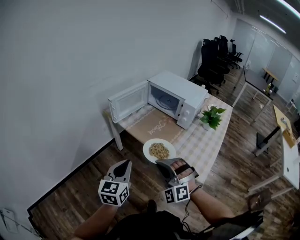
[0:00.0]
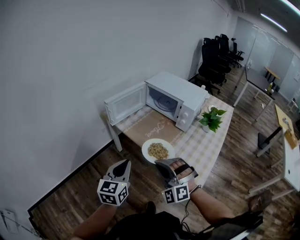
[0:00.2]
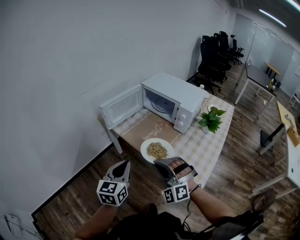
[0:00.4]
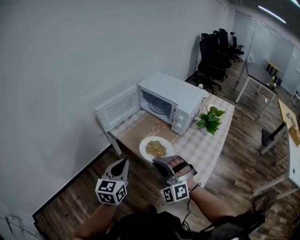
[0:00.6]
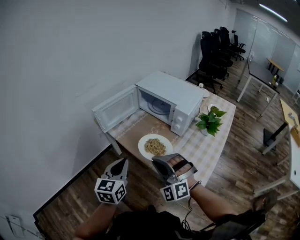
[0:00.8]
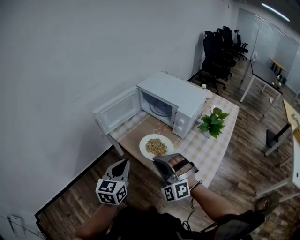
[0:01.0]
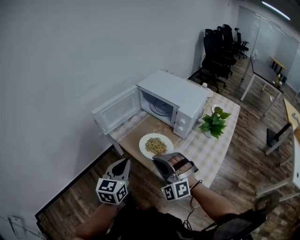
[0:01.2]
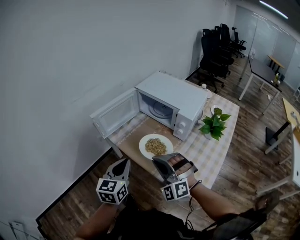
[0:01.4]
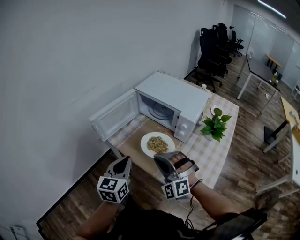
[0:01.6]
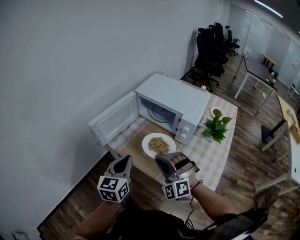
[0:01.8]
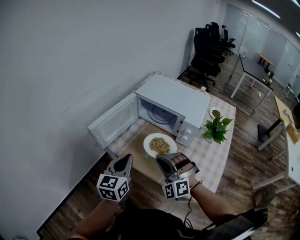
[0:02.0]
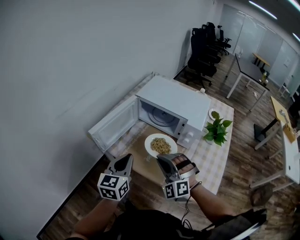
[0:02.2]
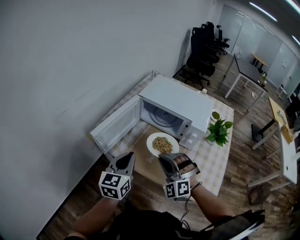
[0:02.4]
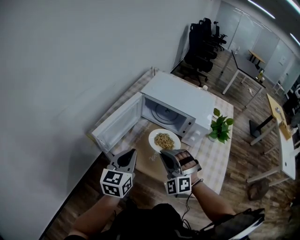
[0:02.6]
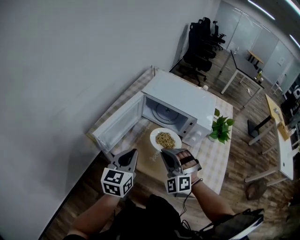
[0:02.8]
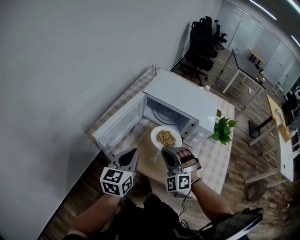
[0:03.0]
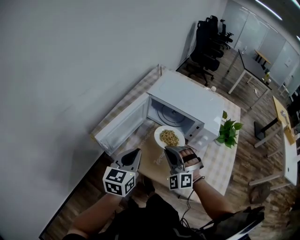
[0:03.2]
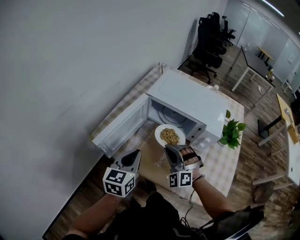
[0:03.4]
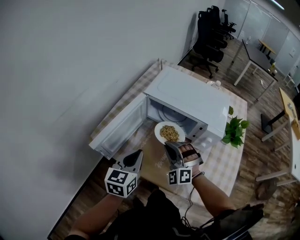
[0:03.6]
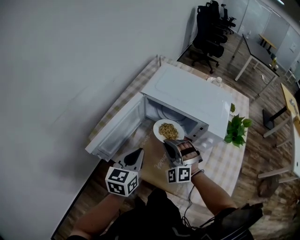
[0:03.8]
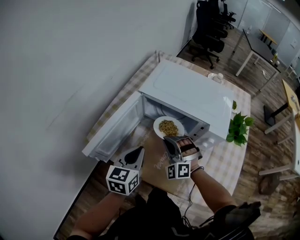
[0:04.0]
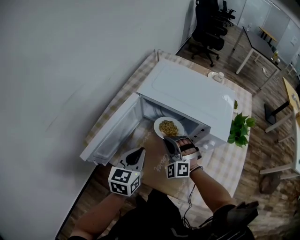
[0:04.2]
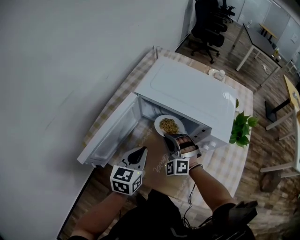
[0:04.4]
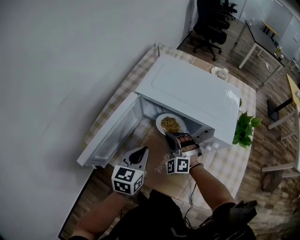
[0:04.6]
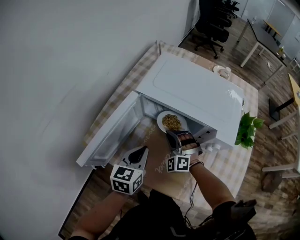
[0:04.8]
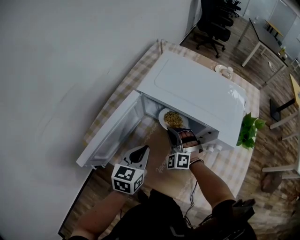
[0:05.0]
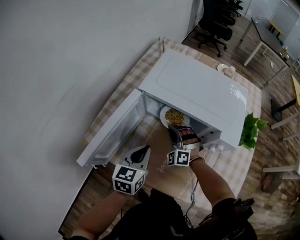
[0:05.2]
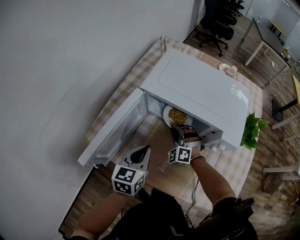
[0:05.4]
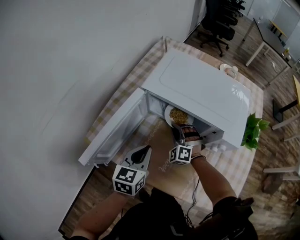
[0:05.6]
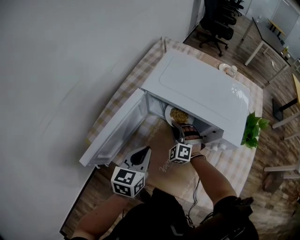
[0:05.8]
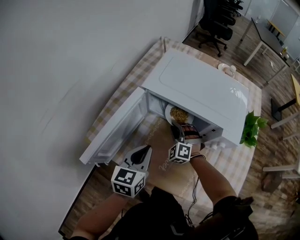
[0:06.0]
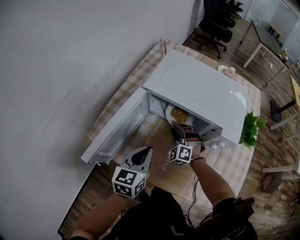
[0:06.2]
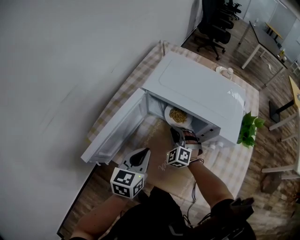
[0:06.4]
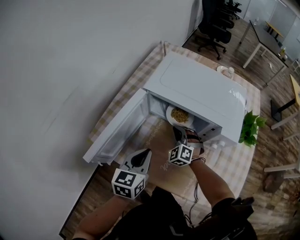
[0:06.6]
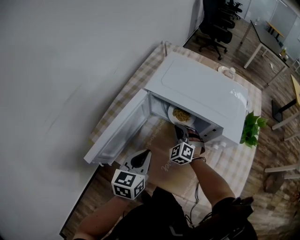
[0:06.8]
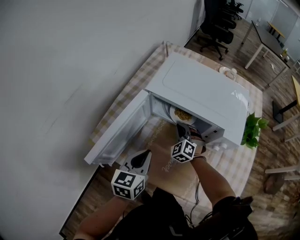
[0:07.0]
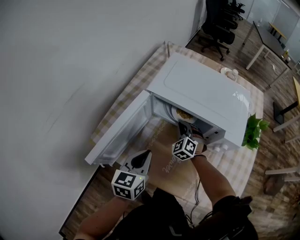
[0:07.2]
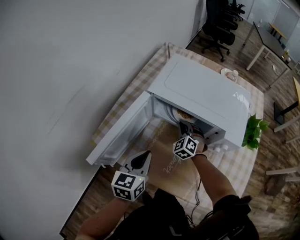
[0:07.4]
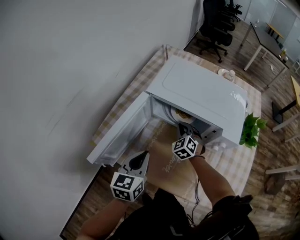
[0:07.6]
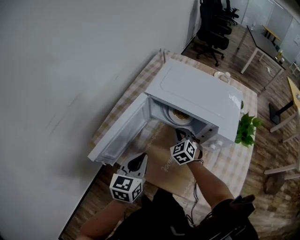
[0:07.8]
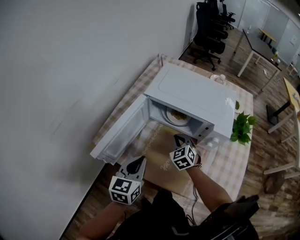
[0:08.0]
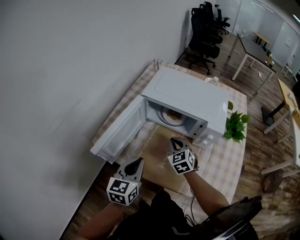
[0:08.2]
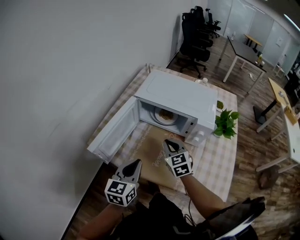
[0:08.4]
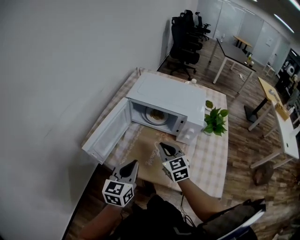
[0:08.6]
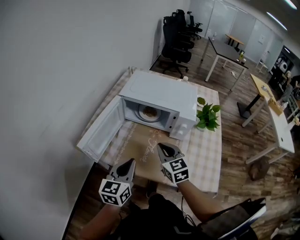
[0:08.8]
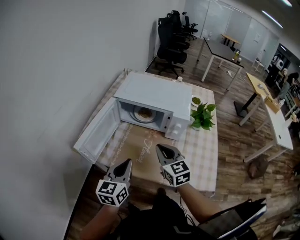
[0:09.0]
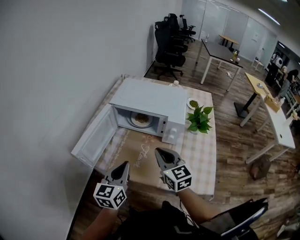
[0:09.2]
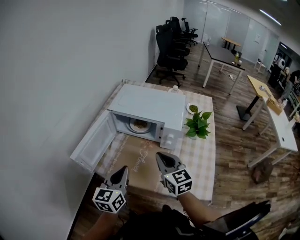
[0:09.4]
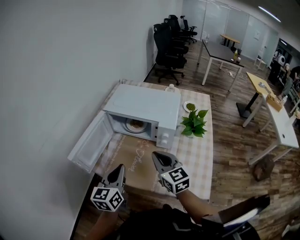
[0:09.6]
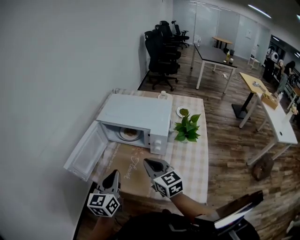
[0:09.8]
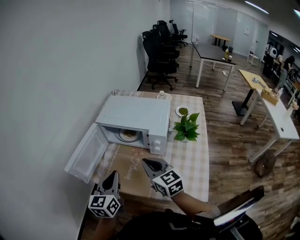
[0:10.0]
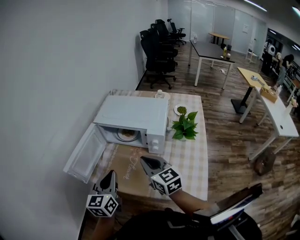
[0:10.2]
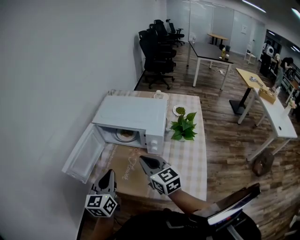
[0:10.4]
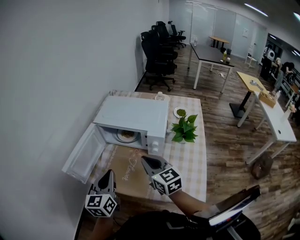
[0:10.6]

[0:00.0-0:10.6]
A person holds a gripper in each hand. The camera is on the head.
0:00.0 to 0:01.6: Both grippers move forward and to the right, roughly 20 cm.
0:01.6 to 0:03.0: The two grippers go about 15 cm forward and to the left.
0:03.0 to 0:04.6: The right gripper goes roughly 25 cm forward and downward; the left gripper goes some 15 cm forward, downward and to the right.
0:04.6 to 0:06.0: The right gripper goes about 5 cm downward.
0:06.0 to 0:07.6: The right gripper rotates approximately 30 degrees.
0:07.6 to 0:09.0: The right gripper is displaced backward and upward by approximately 30 cm, and turns by approximately 40 degrees; the left gripper heads backward and upward, covering roughly 15 cm.
0:09.0 to 0:10.6: The left gripper is displaced upward by roughly 5 cm, while the right gripper moves to the right and upward, about 10 cm.

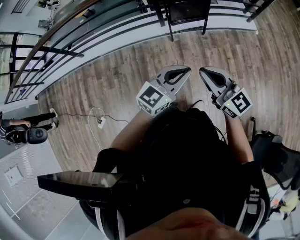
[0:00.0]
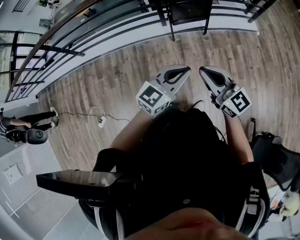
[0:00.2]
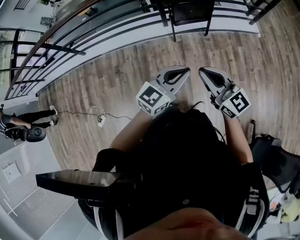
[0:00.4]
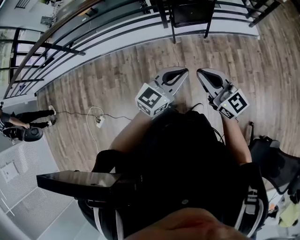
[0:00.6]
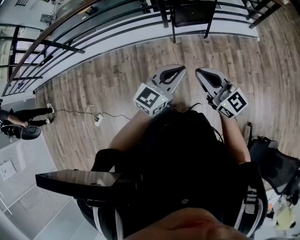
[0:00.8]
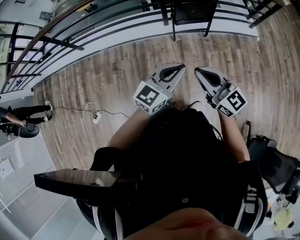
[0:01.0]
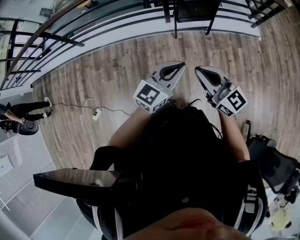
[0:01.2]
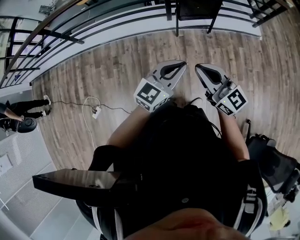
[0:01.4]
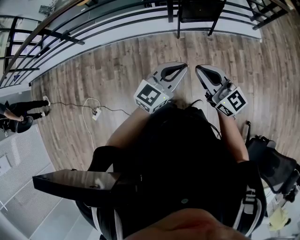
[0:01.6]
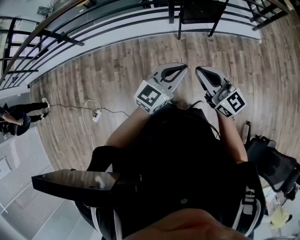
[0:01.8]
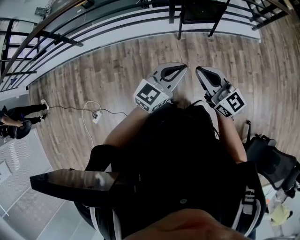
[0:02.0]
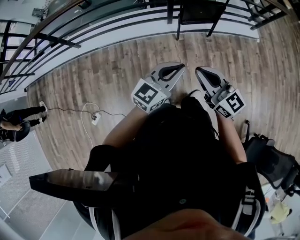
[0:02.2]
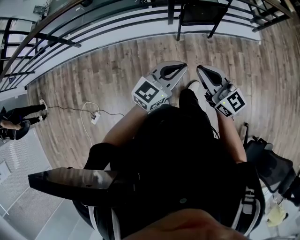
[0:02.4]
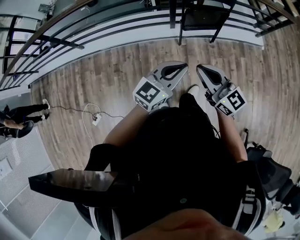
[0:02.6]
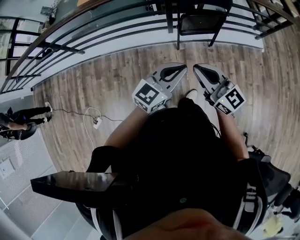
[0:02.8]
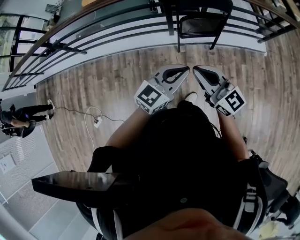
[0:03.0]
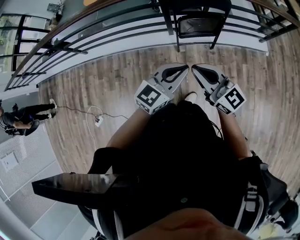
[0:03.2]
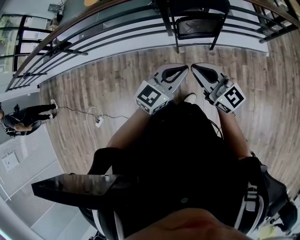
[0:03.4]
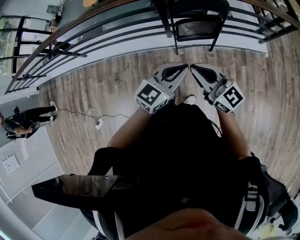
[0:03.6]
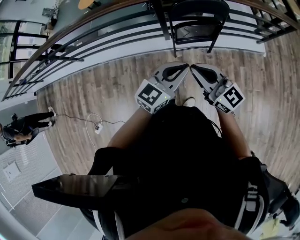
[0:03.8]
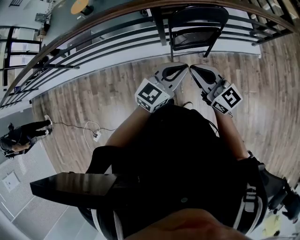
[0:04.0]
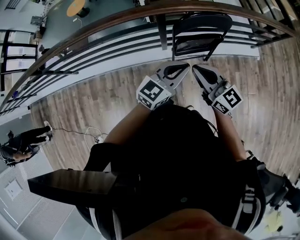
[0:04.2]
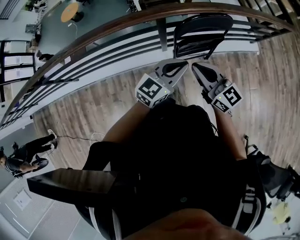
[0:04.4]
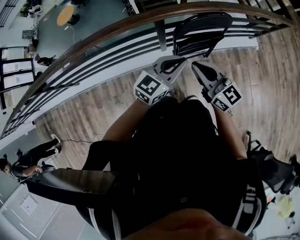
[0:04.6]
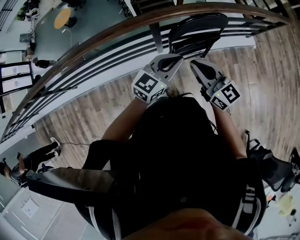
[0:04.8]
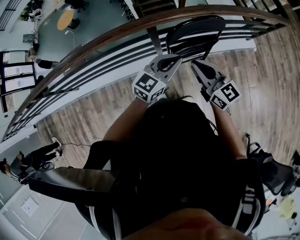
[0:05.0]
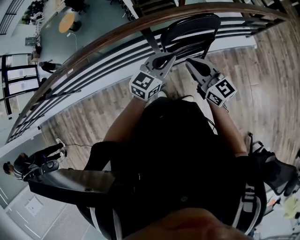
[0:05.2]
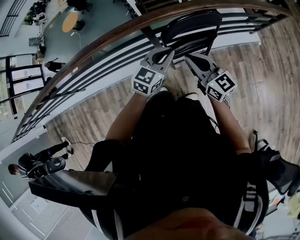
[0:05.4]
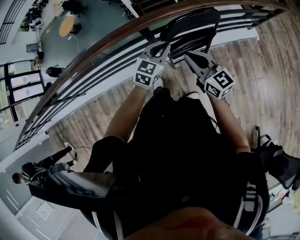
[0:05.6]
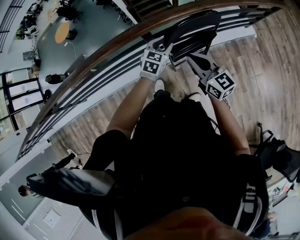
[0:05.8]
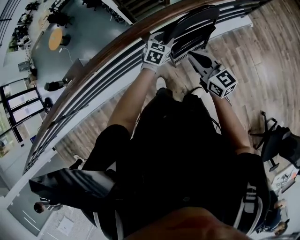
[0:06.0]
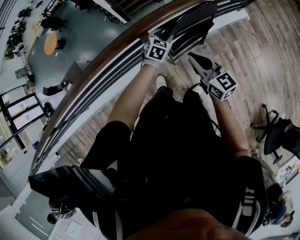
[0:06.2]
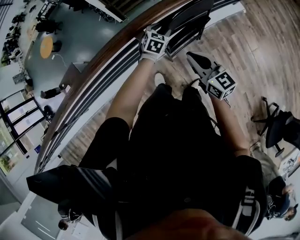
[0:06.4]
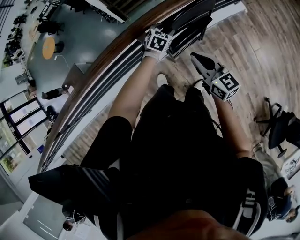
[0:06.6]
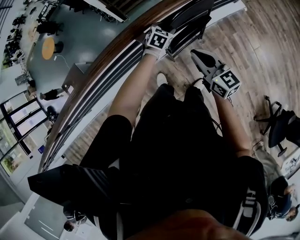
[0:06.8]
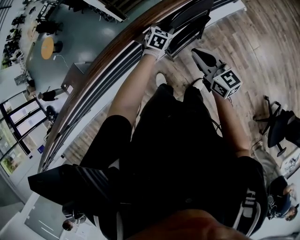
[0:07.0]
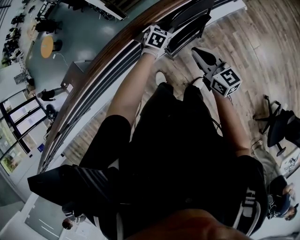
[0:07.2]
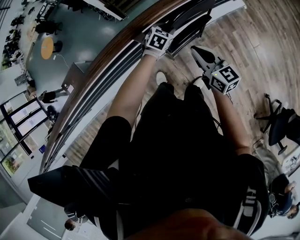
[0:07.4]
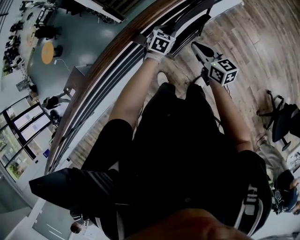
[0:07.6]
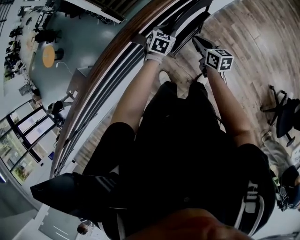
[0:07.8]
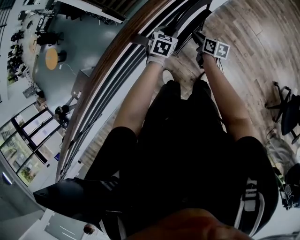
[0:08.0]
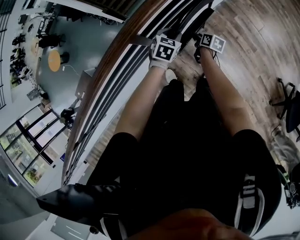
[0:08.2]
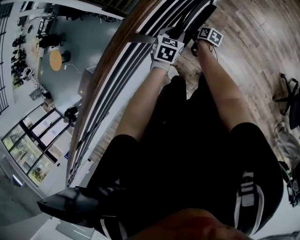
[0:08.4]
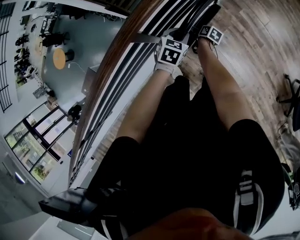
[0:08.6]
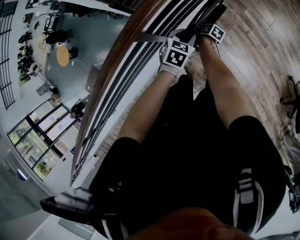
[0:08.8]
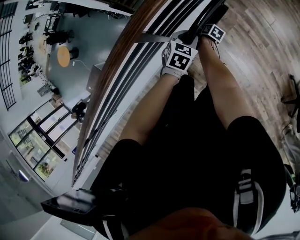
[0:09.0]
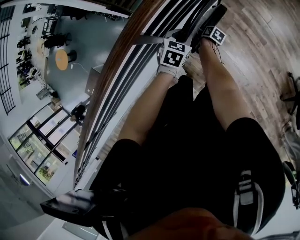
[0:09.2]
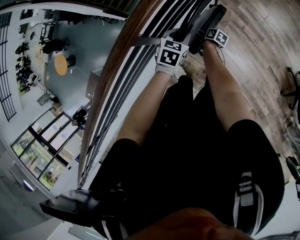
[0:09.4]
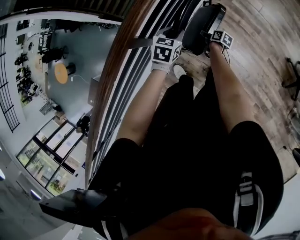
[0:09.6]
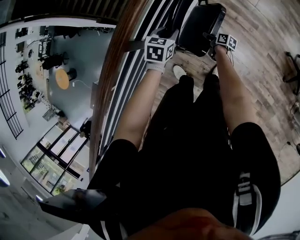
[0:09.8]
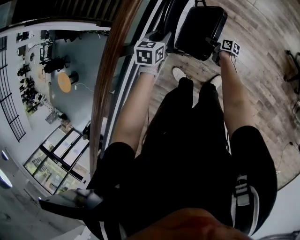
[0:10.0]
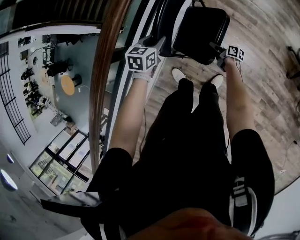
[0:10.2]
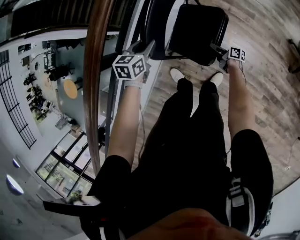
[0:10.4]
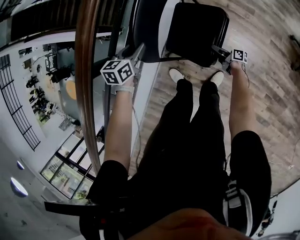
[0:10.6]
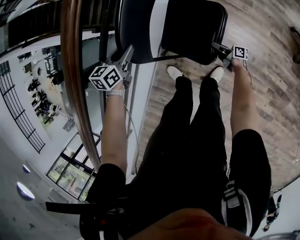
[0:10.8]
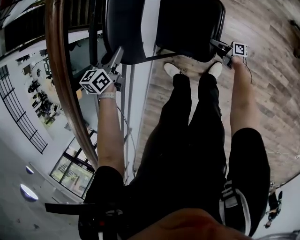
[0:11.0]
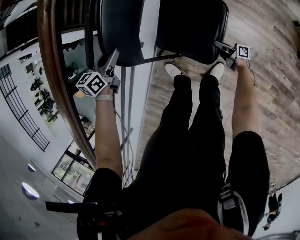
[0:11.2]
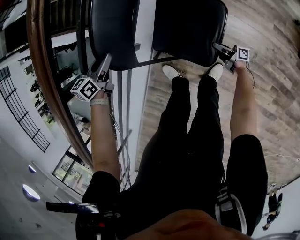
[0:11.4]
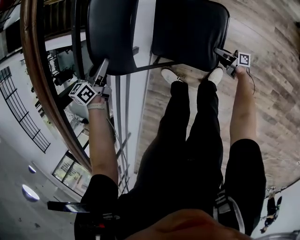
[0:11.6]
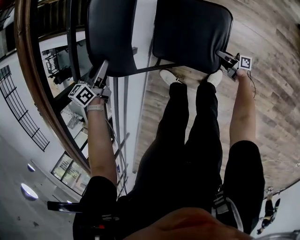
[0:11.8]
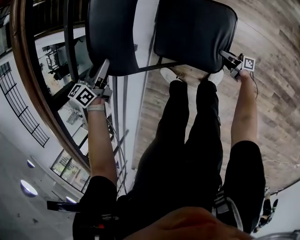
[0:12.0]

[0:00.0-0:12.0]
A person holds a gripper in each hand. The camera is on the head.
0:00.0 to 0:01.6: Both grippers travel together to the left, some 10 cm.
0:01.6 to 0:03.0: The right gripper shifts about 20 cm forward. The left gripper moves forward and to the right, roughly 20 cm.
0:03.0 to 0:04.4: The grippers both shift forward by some 25 cm.
0:04.4 to 0:06.0: The left gripper goes some 30 cm forward and downward, angles its fingers downward, by about 30 degrees, and opens up, while the right gripper travels forward and downward by about 15 cm, and rotates some 20 degrees.
0:06.0 to 0:07.6: The right gripper shifts some 10 cm downward, and turns by some 20 degrees. The left gripper shifts approximately 10 cm downward and to the right.
0:07.6 to 0:09.0: The right gripper goes some 35 cm downward, angles its fingers downward, by some 40 degrees, and opens. The left gripper is displaced to the right and backward by approximately 10 cm.
0:09.0 to 0:10.4: The right gripper heads to the right, backward and downward, covering about 25 cm, and tips its fingers upward by approximately 30 degrees. The left gripper is displaced downward by roughly 5 cm.
0:10.4 to 0:12.0: The left gripper is displaced downward by approximately 10 cm. Meanwhile the right gripper is displaced downward, to the right and backward by roughly 20 cm, and changes its angle by some 20 degrees.

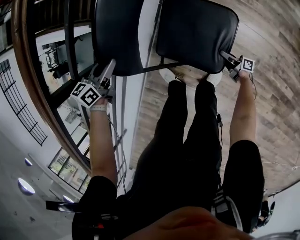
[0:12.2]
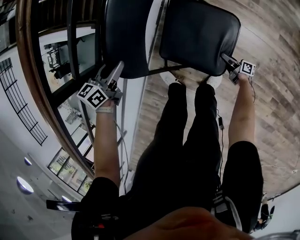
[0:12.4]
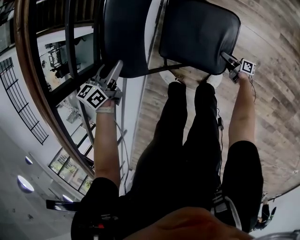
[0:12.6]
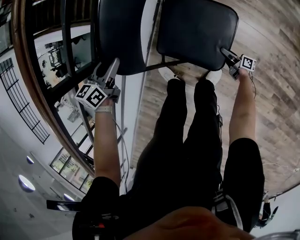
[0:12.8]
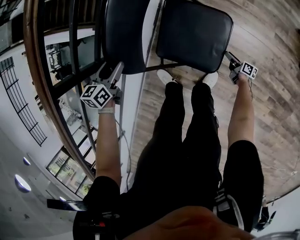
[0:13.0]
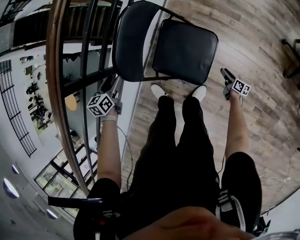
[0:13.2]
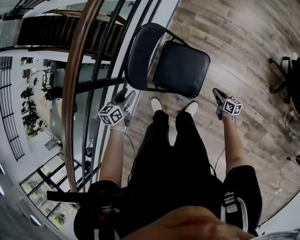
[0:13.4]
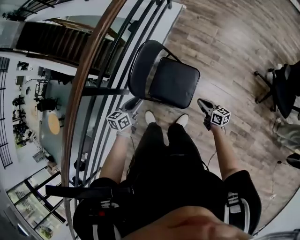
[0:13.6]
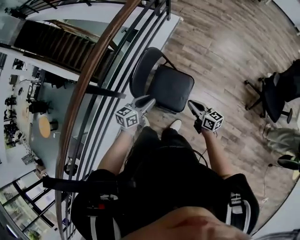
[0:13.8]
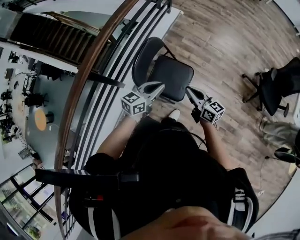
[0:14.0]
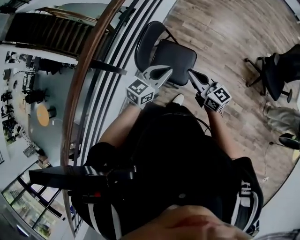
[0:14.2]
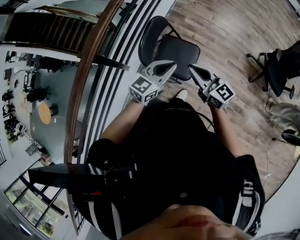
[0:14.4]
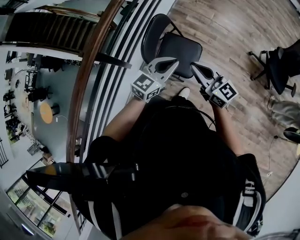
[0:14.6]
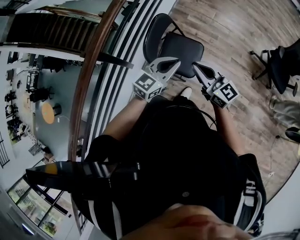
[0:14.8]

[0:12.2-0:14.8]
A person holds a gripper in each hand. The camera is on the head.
0:12.2 to 0:13.4: The right gripper is displaced upward and to the right by some 25 cm, changes its angle by roughly 40 degrees, and closes up. Meanwhile the left gripper heads backward, upward and to the right, covering some 15 cm, and opens up.
0:13.4 to 0:14.8: The right gripper heads upward and to the left, covering about 60 cm, and twists about 40 degrees counterclockwise, seen from behind, while the left gripper heads upward and to the right, covering roughly 30 cm, changes its angle by some 50 degrees, and closes.
